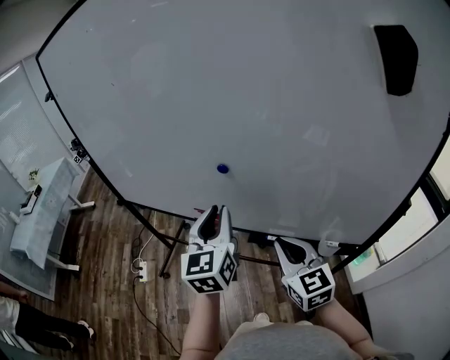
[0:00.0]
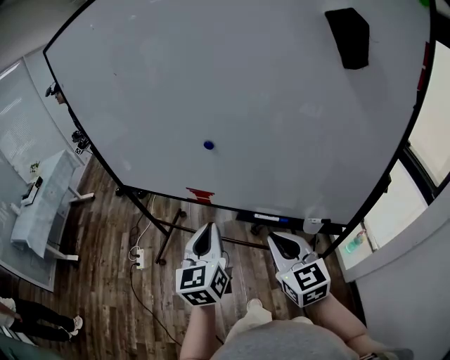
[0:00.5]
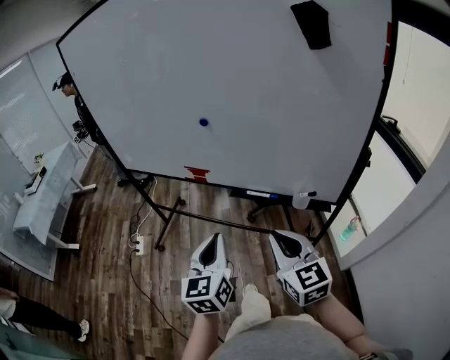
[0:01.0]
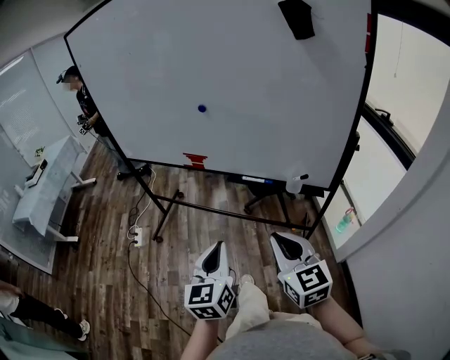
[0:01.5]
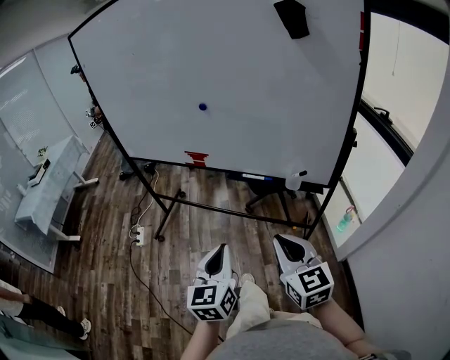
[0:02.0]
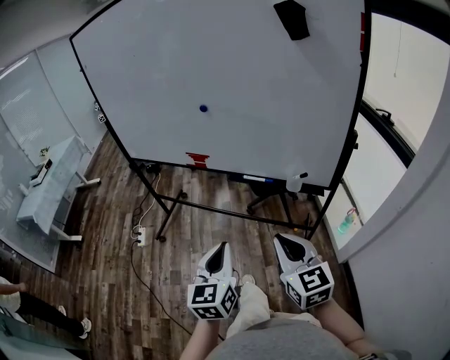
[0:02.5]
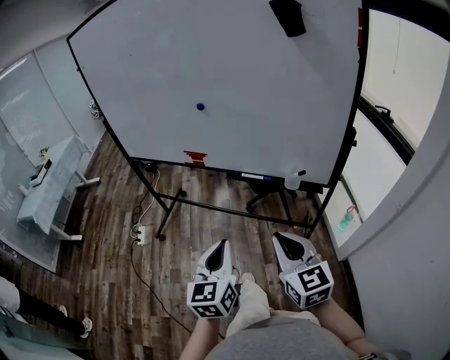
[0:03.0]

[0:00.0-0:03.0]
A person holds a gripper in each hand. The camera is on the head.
0:00.0 to 0:01.5: The two grippers go roughly 35 cm backward.
0:01.5 to 0:03.0: The grippers move only a little.

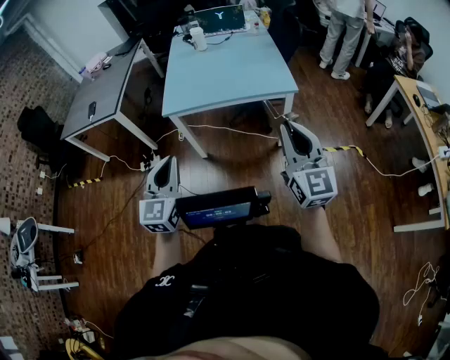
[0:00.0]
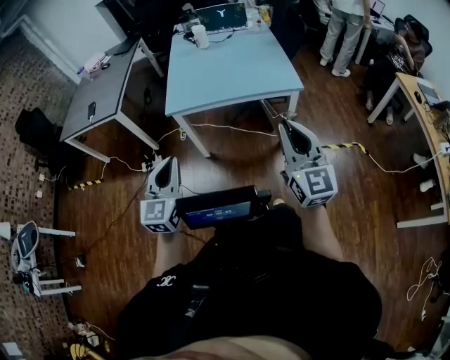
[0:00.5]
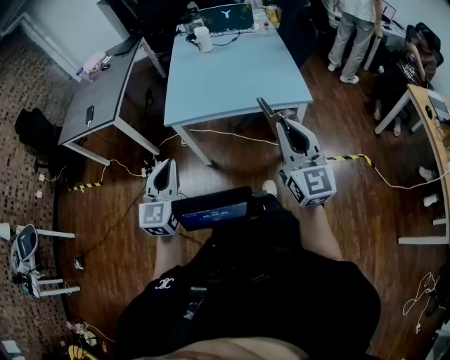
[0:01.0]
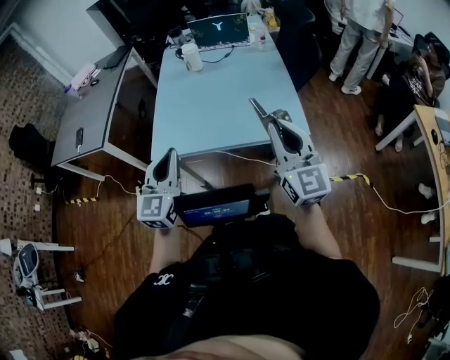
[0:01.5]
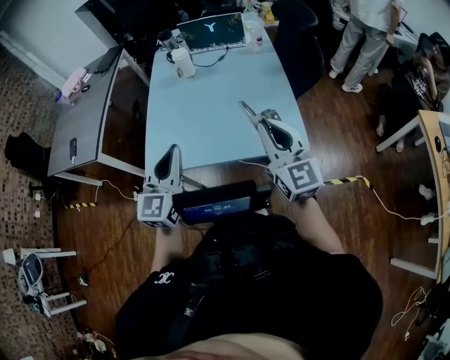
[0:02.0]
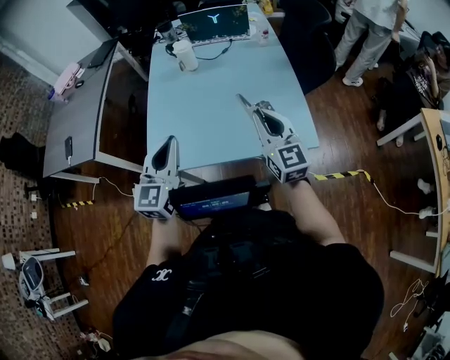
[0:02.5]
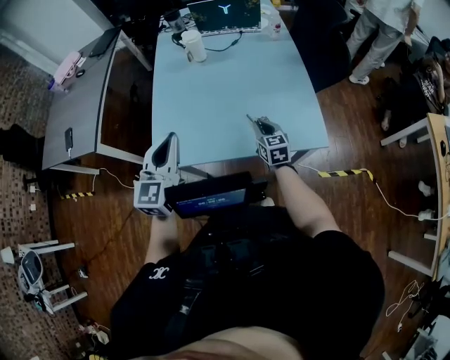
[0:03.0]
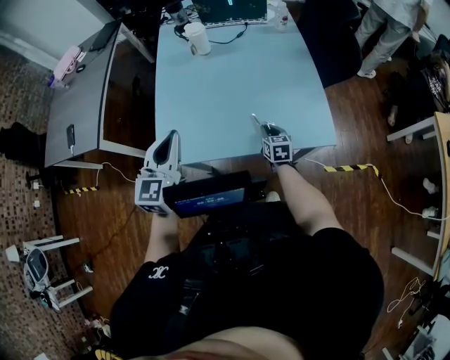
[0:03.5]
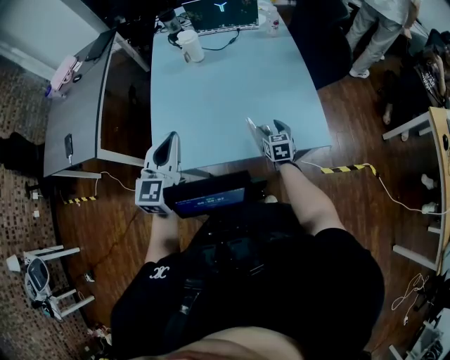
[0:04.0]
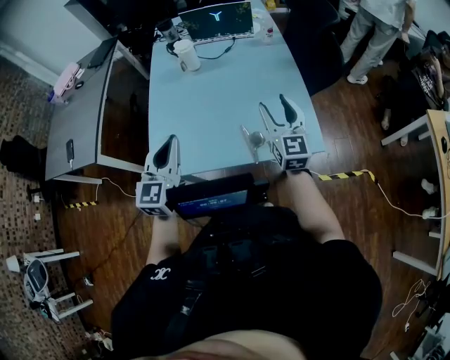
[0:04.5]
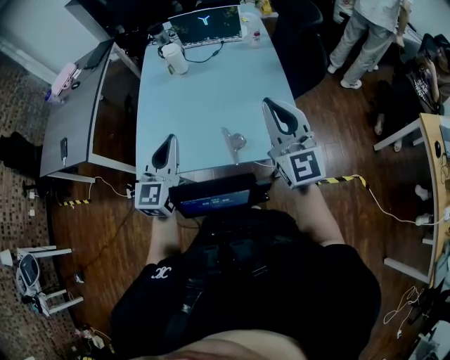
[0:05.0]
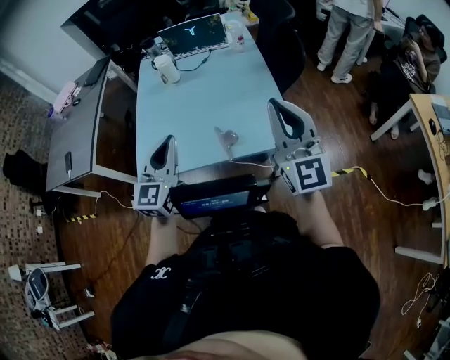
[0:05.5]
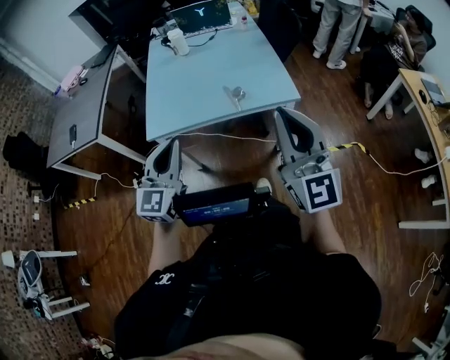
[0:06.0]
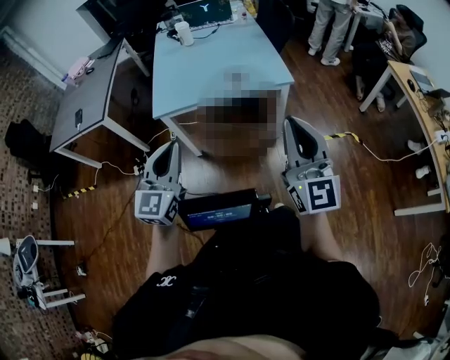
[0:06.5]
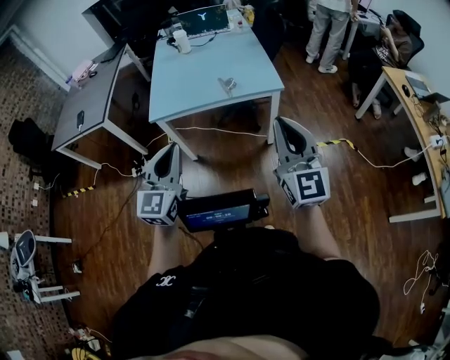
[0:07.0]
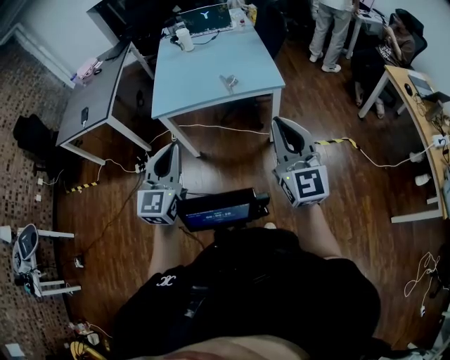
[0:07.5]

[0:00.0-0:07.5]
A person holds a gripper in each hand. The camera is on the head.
0:00.0 to 0:02.0: The two grippers travel together, forward, some 40 cm.
0:02.0 to 0:04.0: The left gripper is displaced forward and to the left by roughly 15 cm; the right gripper is displaced downward and forward by about 40 cm, points its fingers roughly 40 degrees further downward, and opens.
0:04.0 to 0:05.5: The left gripper travels to the right and backward by some 15 cm. Meanwhile the right gripper moves upward, roughly 40 cm, tips its fingers upward by roughly 50 degrees, and closes.
0:05.5 to 0:07.5: Both grippers are carried backward, roughly 40 cm.

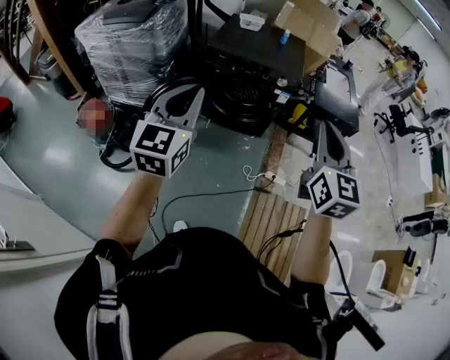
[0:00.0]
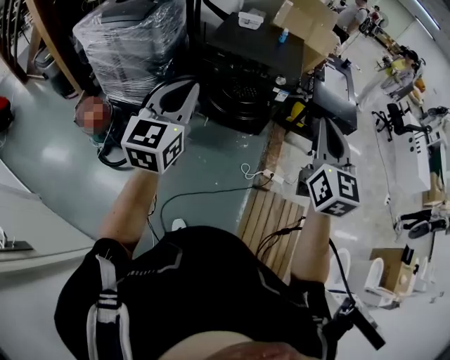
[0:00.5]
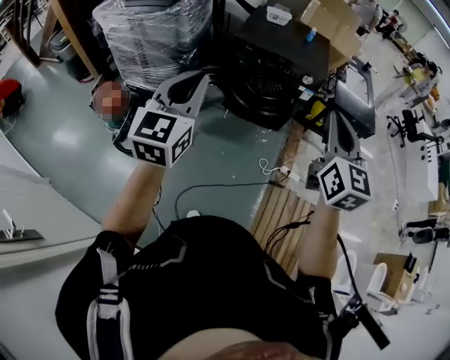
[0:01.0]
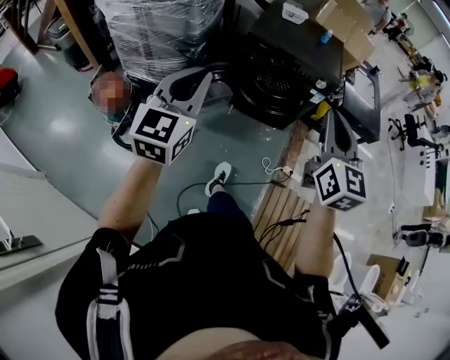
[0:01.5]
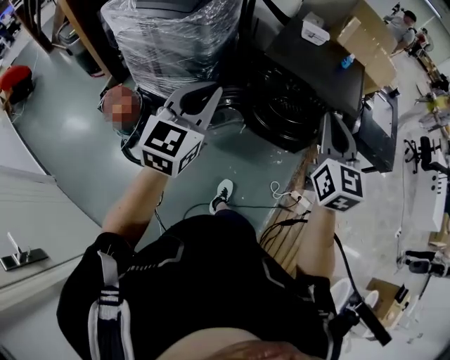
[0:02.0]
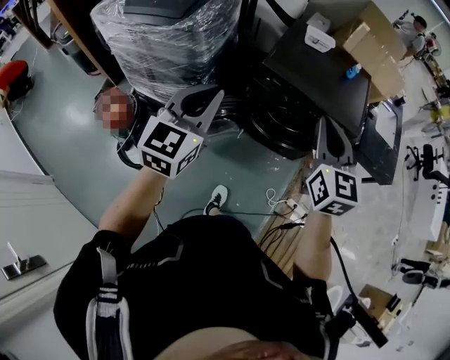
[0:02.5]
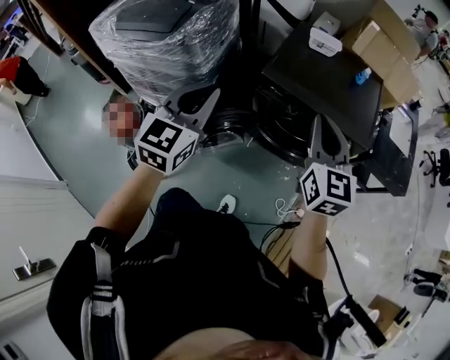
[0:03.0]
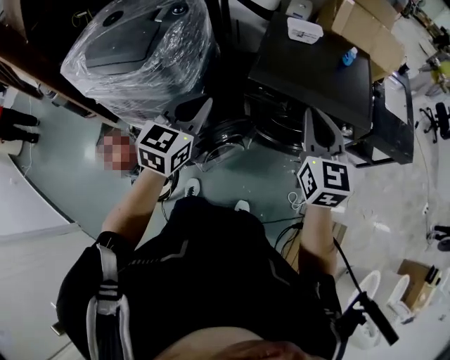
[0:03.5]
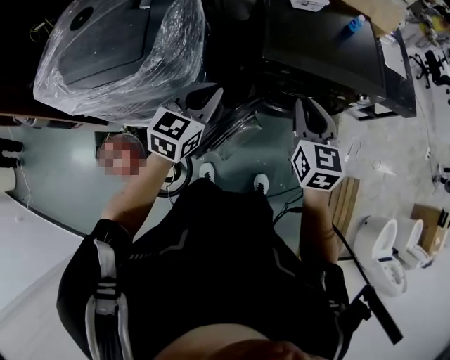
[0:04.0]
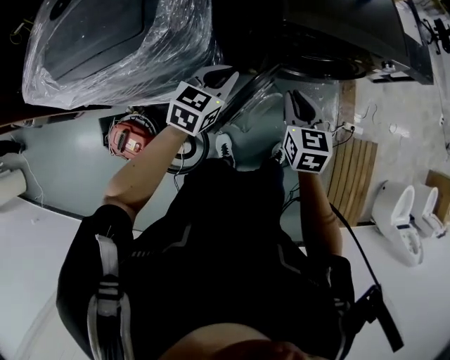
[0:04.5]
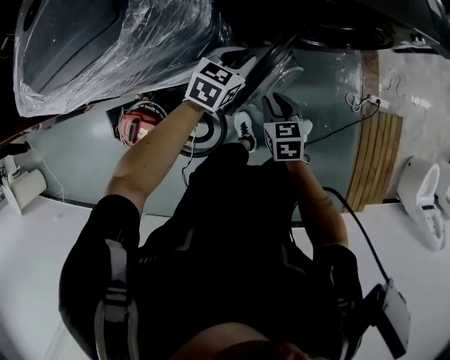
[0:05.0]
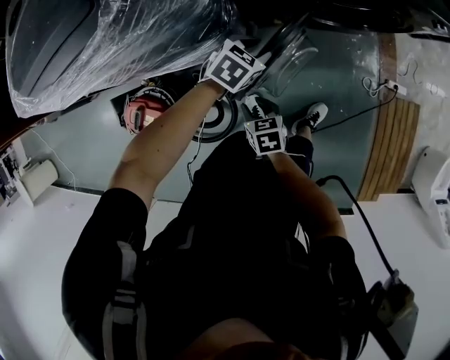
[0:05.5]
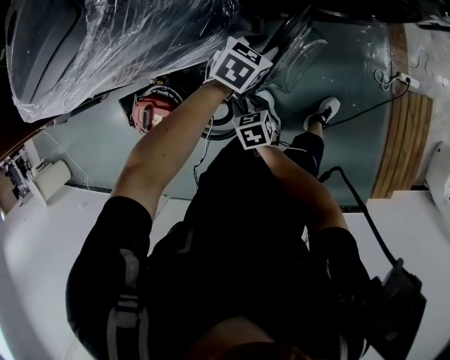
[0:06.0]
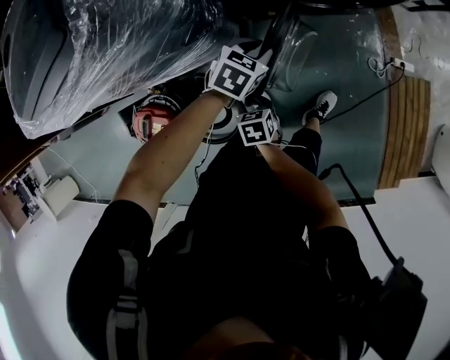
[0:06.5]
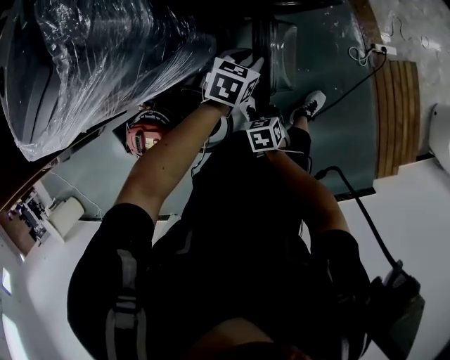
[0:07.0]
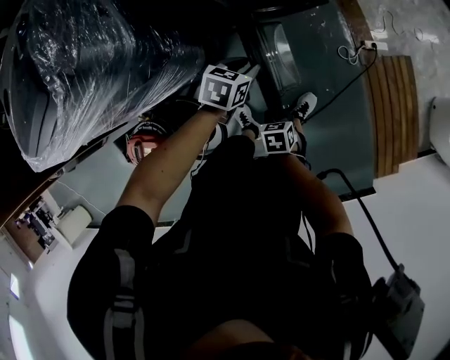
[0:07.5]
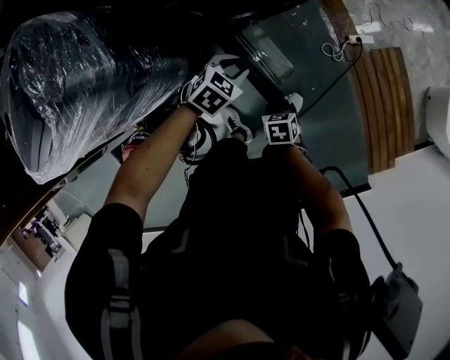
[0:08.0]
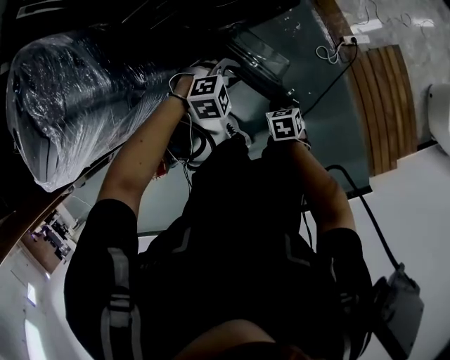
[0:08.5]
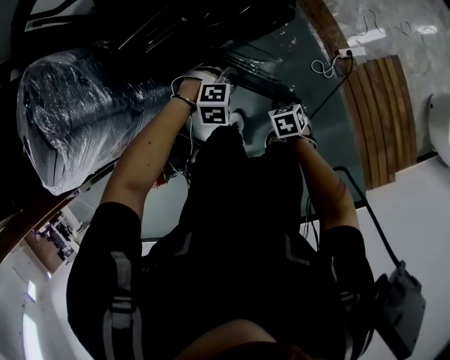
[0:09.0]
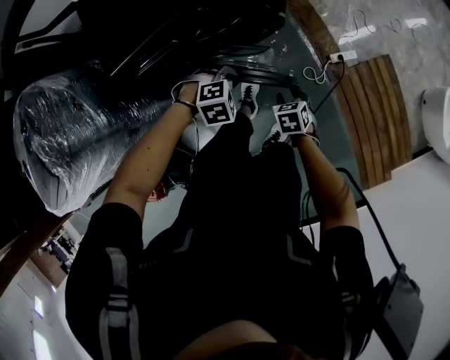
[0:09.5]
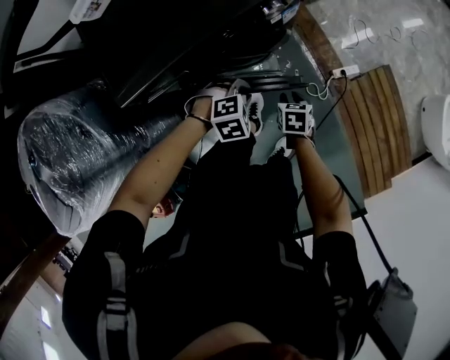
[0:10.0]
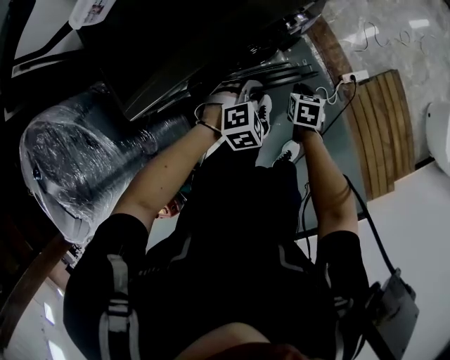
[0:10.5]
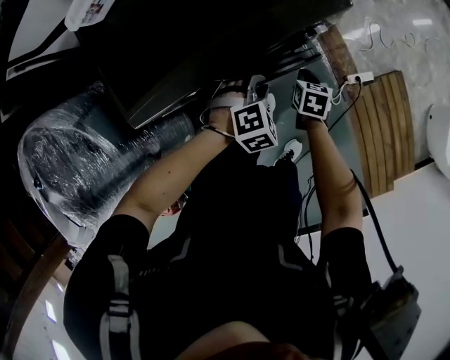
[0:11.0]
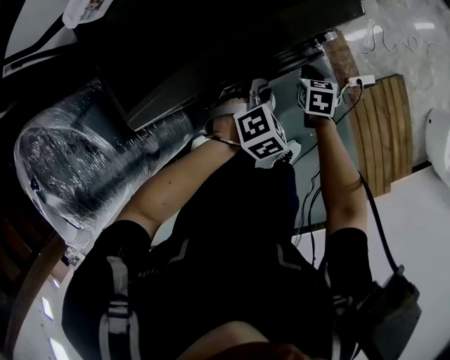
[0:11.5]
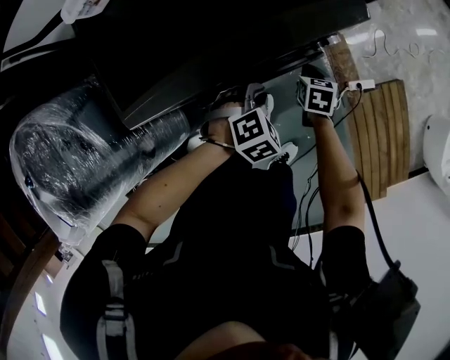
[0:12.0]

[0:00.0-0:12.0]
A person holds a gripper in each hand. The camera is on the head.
0:00.0 to 0:02.0: The right gripper is displaced forward and to the left by some 30 cm. The left gripper heads to the left and forward, covering roughly 25 cm.
0:02.0 to 0:04.0: The left gripper is displaced forward and downward by approximately 35 cm, and swivels approximately 30 degrees. The right gripper moves forward, downward and to the left, about 30 cm, and rotates some 20 degrees.
0:04.0 to 0:06.0: The left gripper goes roughly 35 cm downward, tilts its fingers roughly 30 degrees downward, and opens. The right gripper heads downward, to the left and backward, covering approximately 60 cm, angles its fingers downward, by roughly 30 degrees, and opens up.
0:06.0 to 0:08.0: The right gripper travels to the right by about 35 cm, and turns by some 30 degrees. Meanwhile the left gripper goes approximately 25 cm to the right, and swivels about 30 degrees.
0:08.0 to 0:10.0: The left gripper ends up about 20 cm from where it was, and changes its angle by approximately 40 degrees; the right gripper moves approximately 35 cm.
0:10.0 to 0:12.0: The left gripper shifts by approximately 10 cm, and swivels some 20 degrees; the right gripper changes place by approximately 20 cm, and closes its fingers.

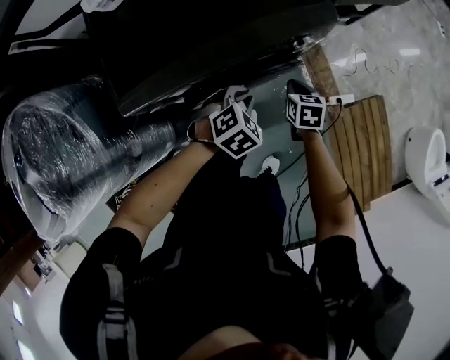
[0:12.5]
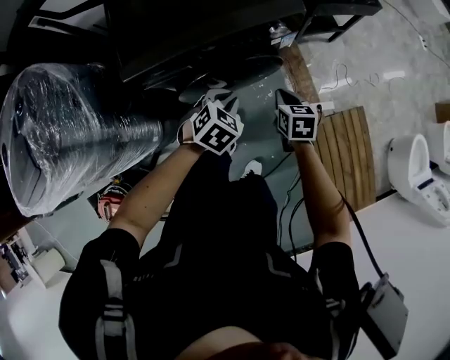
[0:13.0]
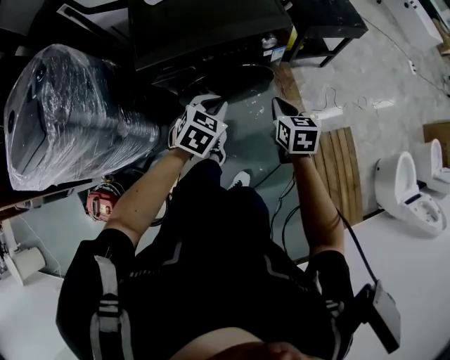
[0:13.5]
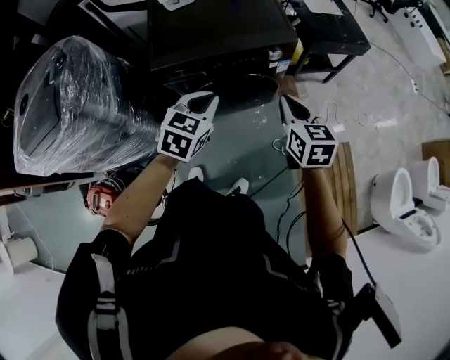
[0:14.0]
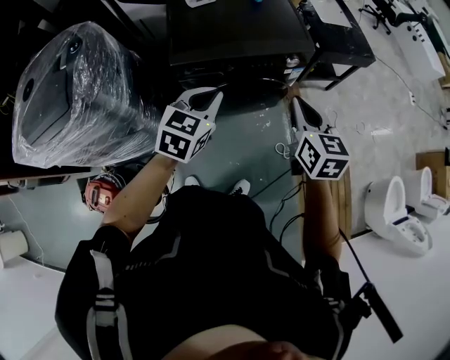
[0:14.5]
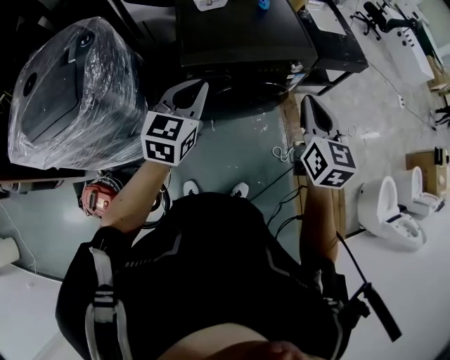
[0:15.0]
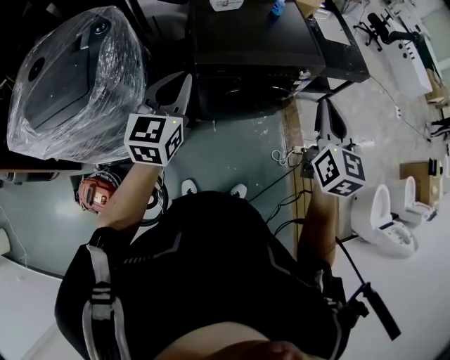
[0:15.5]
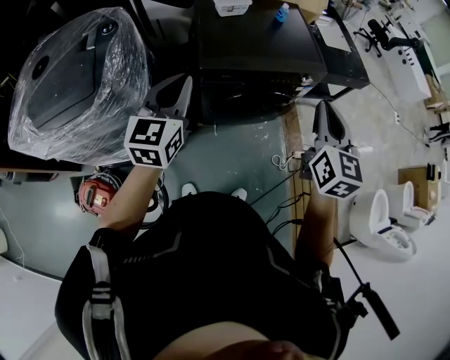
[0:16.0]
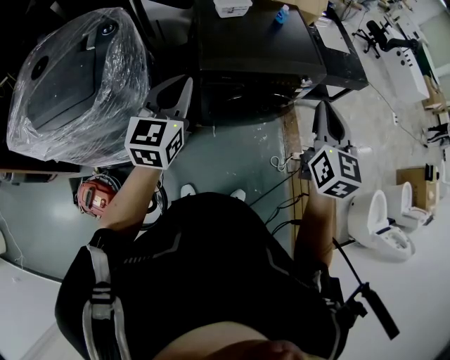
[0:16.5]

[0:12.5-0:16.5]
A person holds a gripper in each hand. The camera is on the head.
0:12.5 to 0:14.5: Both grippers travel together upward and backward, about 40 cm. The right gripper tips its fingers upward by some 30 degrees. Meanwhile the left gripper points its fingers about 40 degrees further upward.
0:14.5 to 0:16.5: The left gripper heads to the left and upward, covering about 20 cm, and swivels roughly 30 degrees, while the right gripper goes approximately 15 cm upward and to the left.
